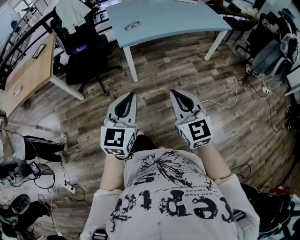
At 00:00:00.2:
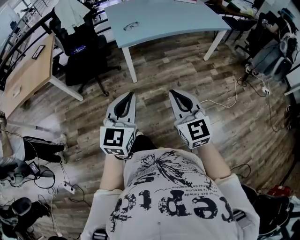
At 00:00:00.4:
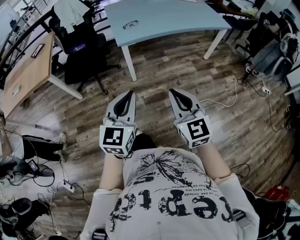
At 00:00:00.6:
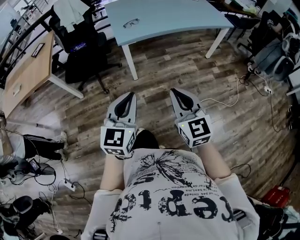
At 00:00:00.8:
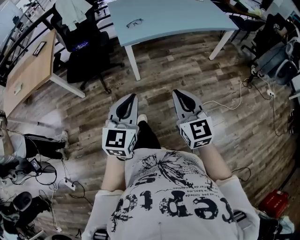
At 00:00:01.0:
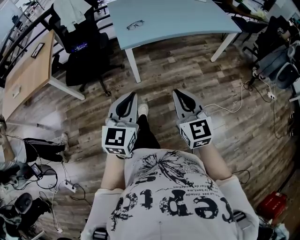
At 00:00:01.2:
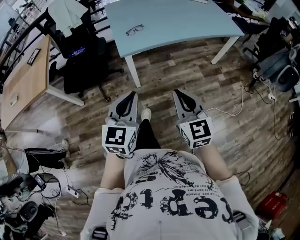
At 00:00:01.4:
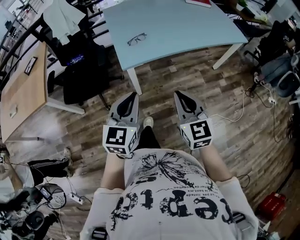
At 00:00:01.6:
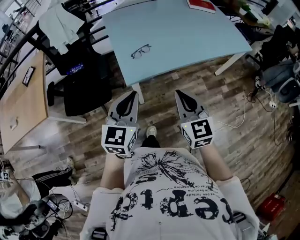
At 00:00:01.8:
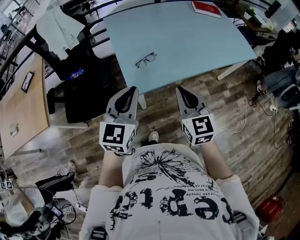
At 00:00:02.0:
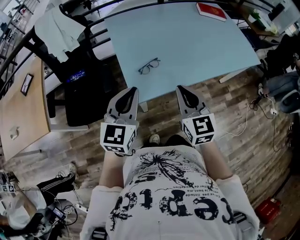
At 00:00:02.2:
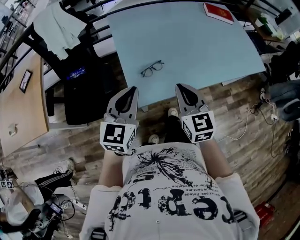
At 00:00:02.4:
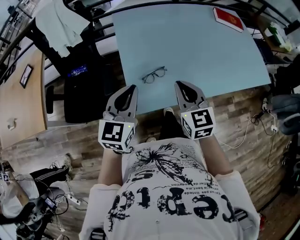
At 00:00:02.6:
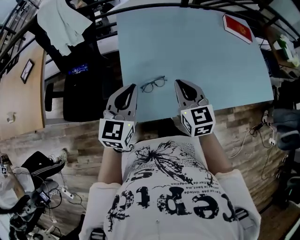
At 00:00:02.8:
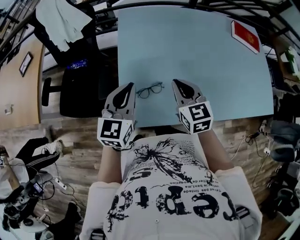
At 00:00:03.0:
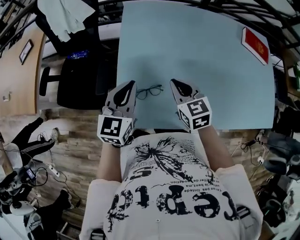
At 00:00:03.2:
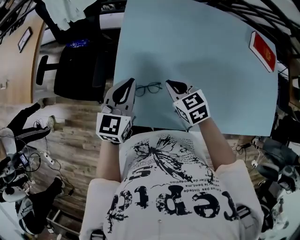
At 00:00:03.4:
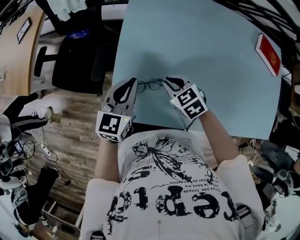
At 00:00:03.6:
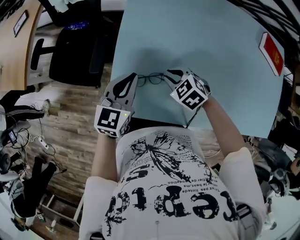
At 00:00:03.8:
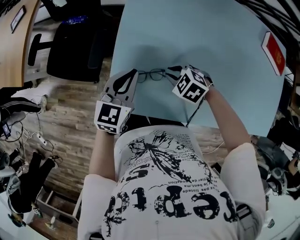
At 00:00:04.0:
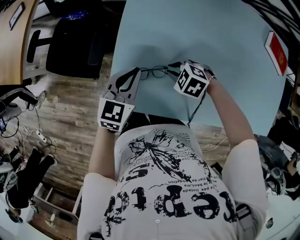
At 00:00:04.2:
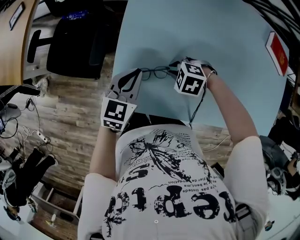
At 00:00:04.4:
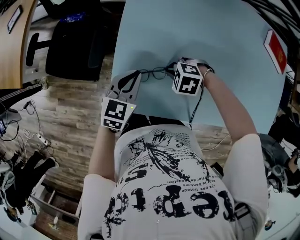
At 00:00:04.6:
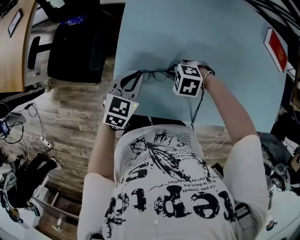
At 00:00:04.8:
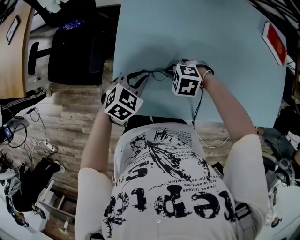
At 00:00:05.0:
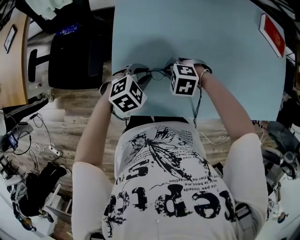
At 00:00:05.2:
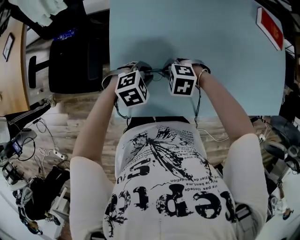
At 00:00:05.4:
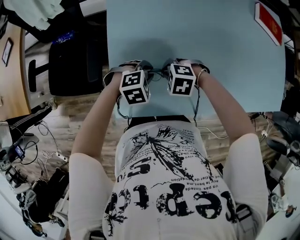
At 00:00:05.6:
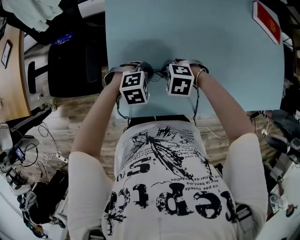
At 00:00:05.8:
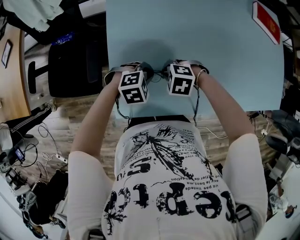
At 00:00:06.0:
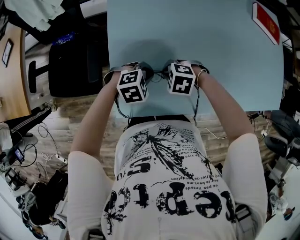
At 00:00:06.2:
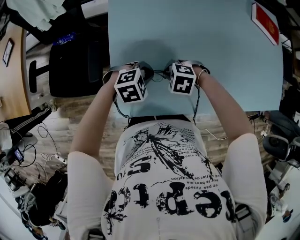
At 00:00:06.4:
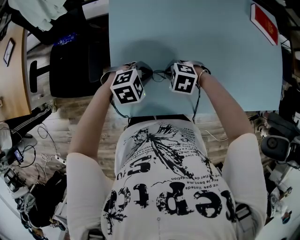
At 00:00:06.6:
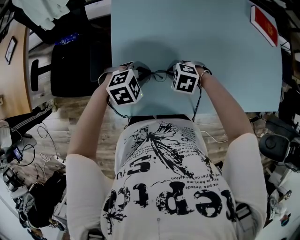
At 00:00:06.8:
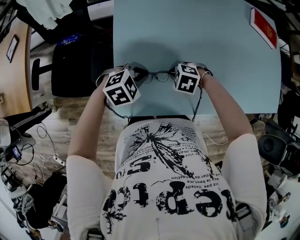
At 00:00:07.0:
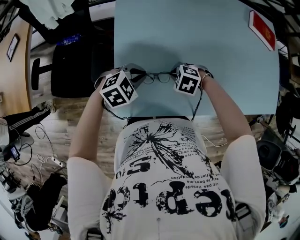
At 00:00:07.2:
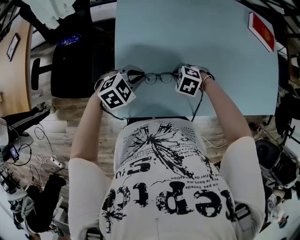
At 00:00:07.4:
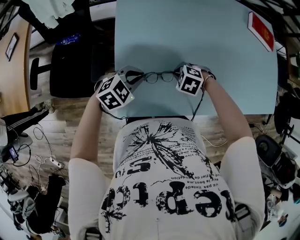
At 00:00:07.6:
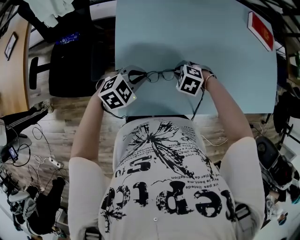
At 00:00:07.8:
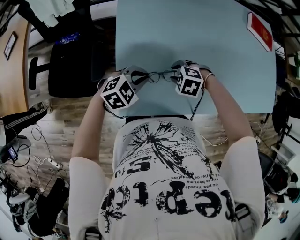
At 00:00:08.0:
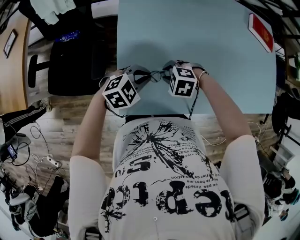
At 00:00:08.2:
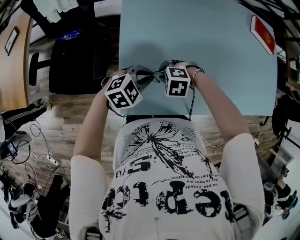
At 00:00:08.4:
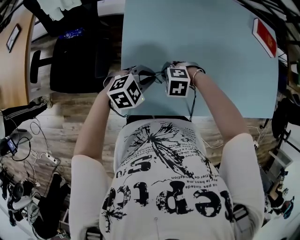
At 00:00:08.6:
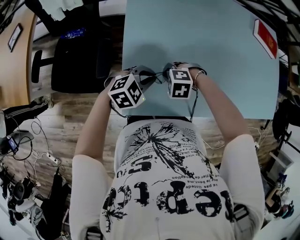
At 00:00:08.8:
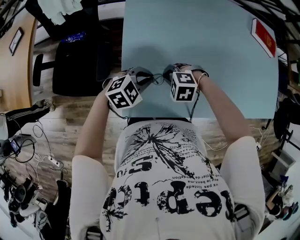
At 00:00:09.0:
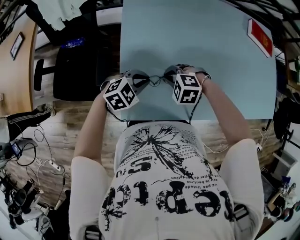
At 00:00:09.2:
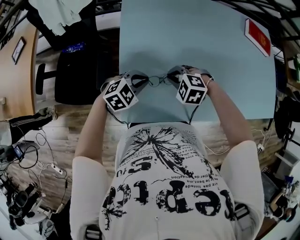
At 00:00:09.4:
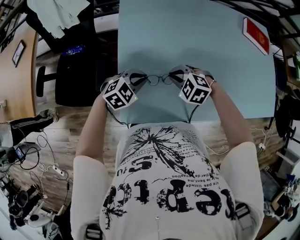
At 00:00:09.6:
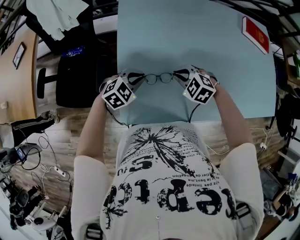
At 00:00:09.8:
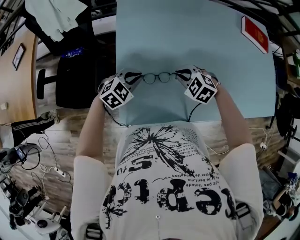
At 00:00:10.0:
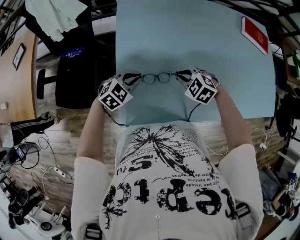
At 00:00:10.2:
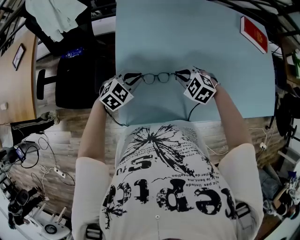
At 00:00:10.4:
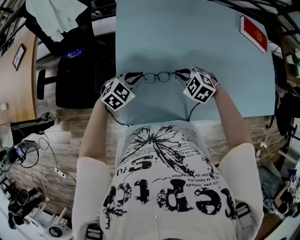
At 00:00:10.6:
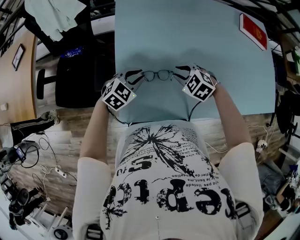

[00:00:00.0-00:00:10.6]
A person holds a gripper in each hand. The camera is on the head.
00:00:00.0 to 00:00:01.6: Both grippers are carried forward, about 40 cm.
00:00:01.6 to 00:00:03.0: The pair of grippers is taken some 40 cm. The right gripper rotates about 30 degrees. The left gripper swivels some 20 degrees.
00:00:03.0 to 00:00:04.6: The two grippers go about 15 cm downward. The left gripper rotates some 20 degrees. Meanwhile the right gripper tips its fingers downward by some 40 degrees.
00:00:04.6 to 00:00:06.0: The left gripper ends up roughly 10 cm from where it was, and changes its angle by some 60 degrees.
00:00:06.0 to 00:00:07.6: The left gripper heads upward, covering some 5 cm.
00:00:07.6 to 00:00:09.0: The right gripper moves some 10 cm, and opens and closes again.
00:00:09.0 to 00:00:10.6: The right gripper changes place by approximately 10 cm, swivels some 30 degrees, and opens its fingers.

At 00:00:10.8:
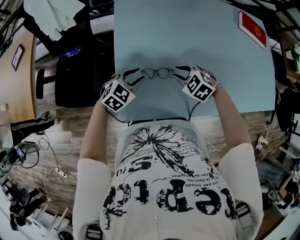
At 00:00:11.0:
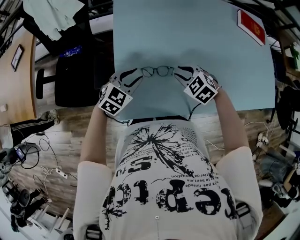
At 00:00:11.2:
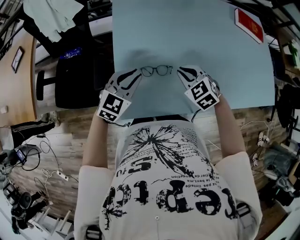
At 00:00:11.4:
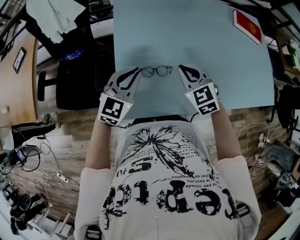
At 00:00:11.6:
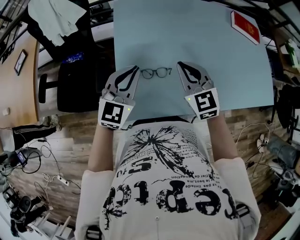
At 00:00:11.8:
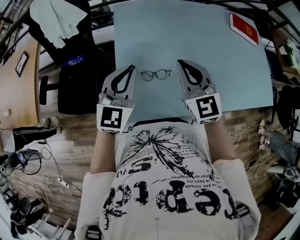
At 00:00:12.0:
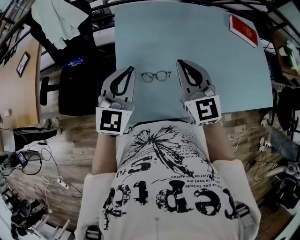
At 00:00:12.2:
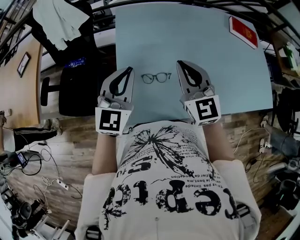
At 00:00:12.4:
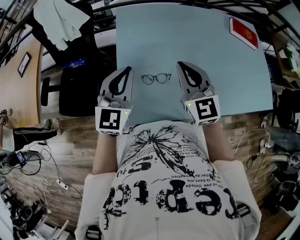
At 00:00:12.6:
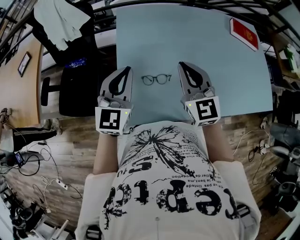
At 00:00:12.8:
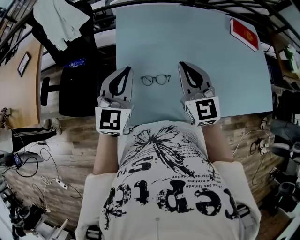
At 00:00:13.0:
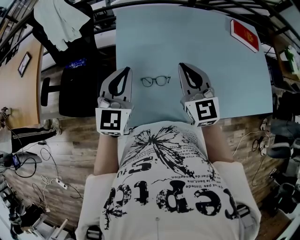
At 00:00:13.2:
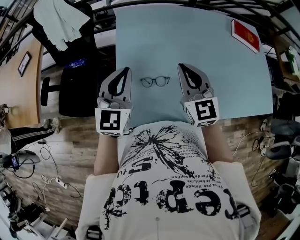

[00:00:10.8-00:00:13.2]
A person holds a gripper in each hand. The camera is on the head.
00:00:10.8 to 00:00:12.0: The grippers both shift upward by roughly 20 cm. The left gripper tilts its fingers roughly 40 degrees upward, and closes, while the right gripper tilts its fingers about 50 degrees upward, and closes up.
00:00:12.0 to 00:00:13.2: The grippers make only small movements.

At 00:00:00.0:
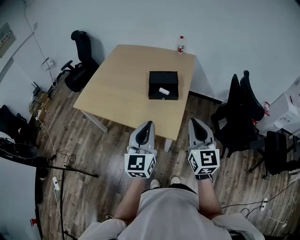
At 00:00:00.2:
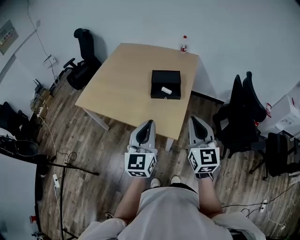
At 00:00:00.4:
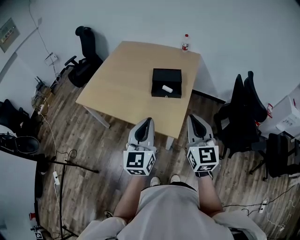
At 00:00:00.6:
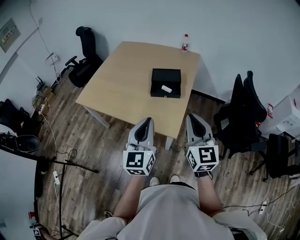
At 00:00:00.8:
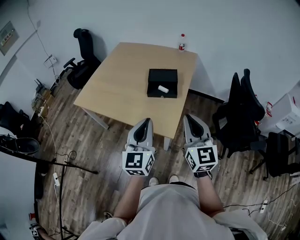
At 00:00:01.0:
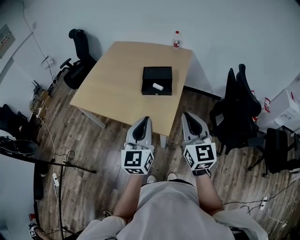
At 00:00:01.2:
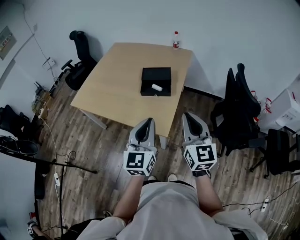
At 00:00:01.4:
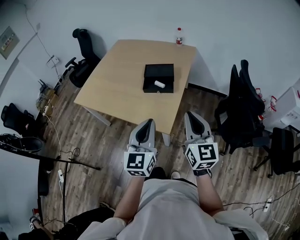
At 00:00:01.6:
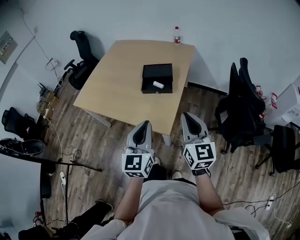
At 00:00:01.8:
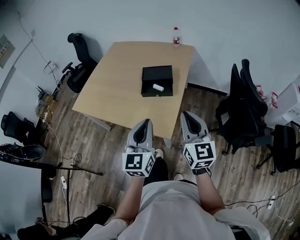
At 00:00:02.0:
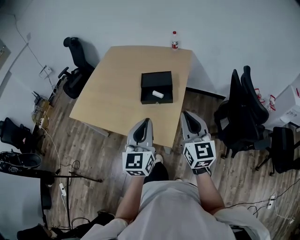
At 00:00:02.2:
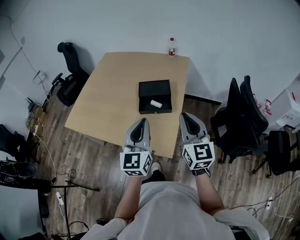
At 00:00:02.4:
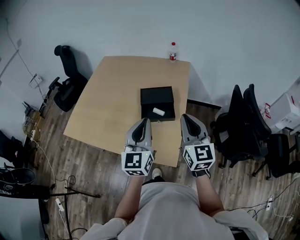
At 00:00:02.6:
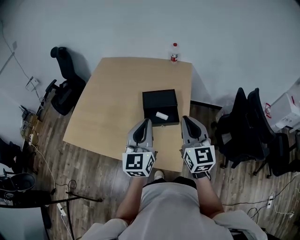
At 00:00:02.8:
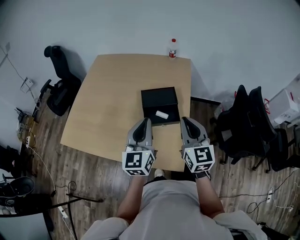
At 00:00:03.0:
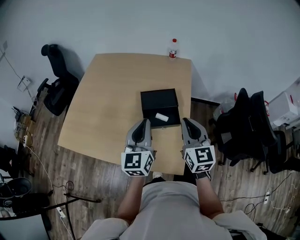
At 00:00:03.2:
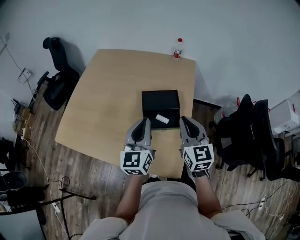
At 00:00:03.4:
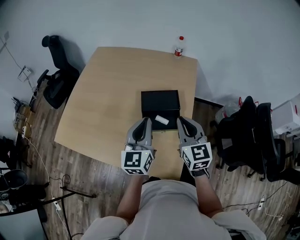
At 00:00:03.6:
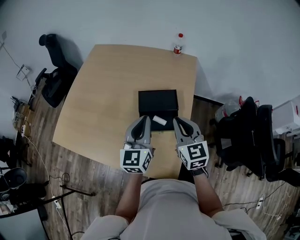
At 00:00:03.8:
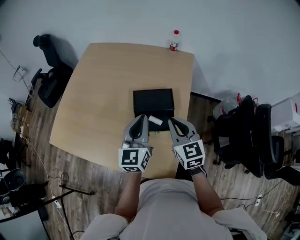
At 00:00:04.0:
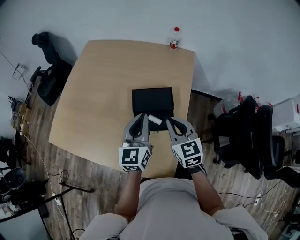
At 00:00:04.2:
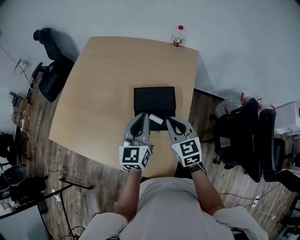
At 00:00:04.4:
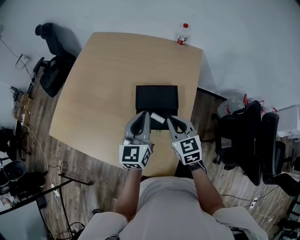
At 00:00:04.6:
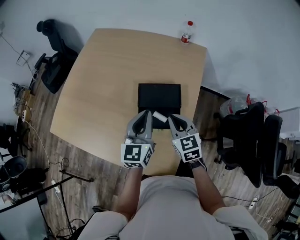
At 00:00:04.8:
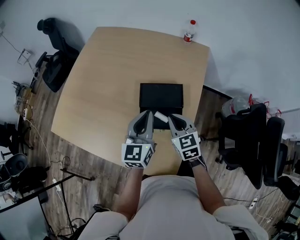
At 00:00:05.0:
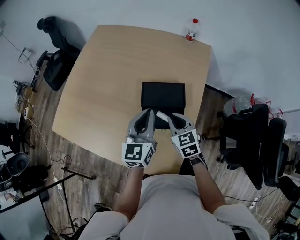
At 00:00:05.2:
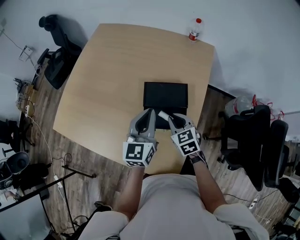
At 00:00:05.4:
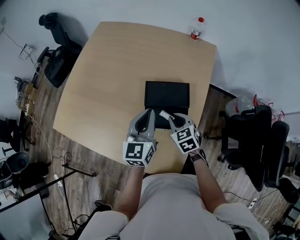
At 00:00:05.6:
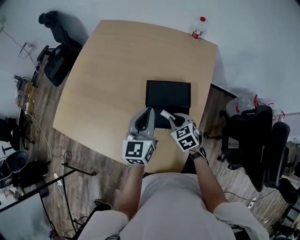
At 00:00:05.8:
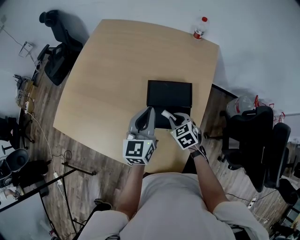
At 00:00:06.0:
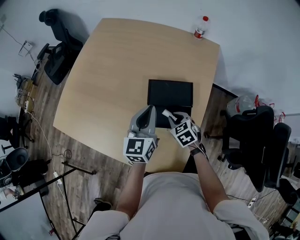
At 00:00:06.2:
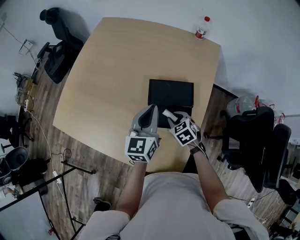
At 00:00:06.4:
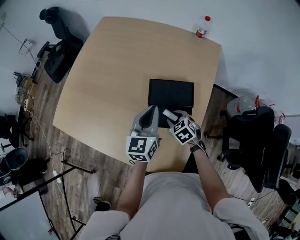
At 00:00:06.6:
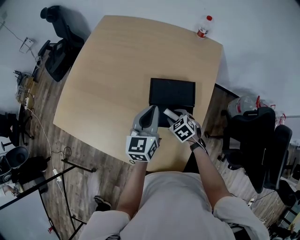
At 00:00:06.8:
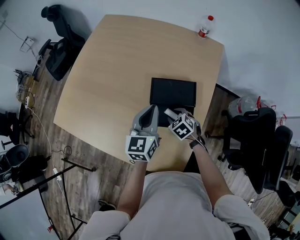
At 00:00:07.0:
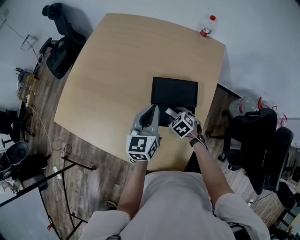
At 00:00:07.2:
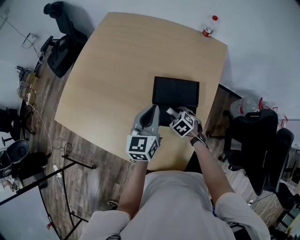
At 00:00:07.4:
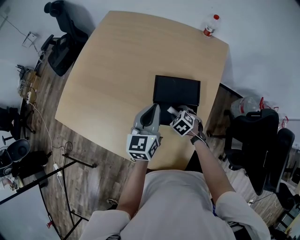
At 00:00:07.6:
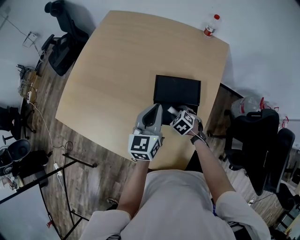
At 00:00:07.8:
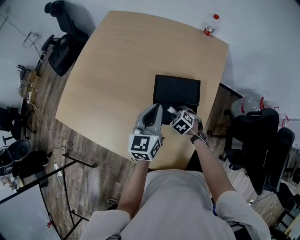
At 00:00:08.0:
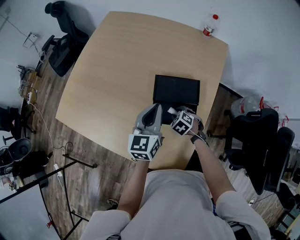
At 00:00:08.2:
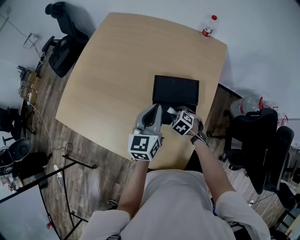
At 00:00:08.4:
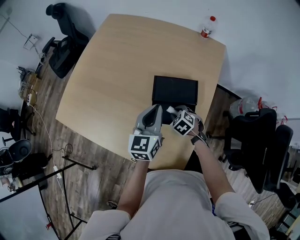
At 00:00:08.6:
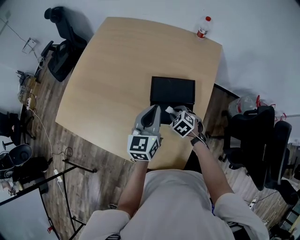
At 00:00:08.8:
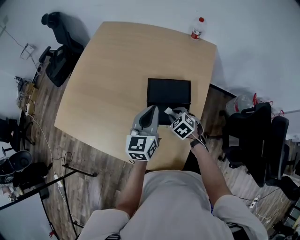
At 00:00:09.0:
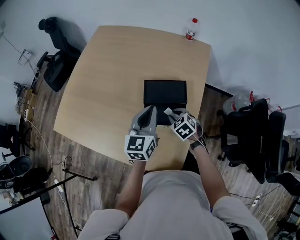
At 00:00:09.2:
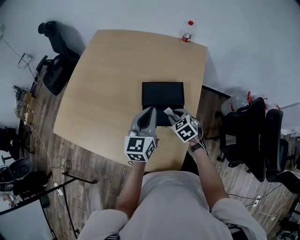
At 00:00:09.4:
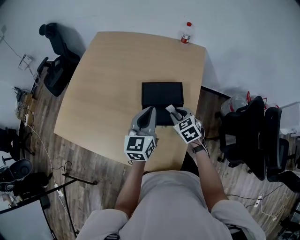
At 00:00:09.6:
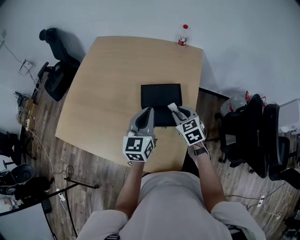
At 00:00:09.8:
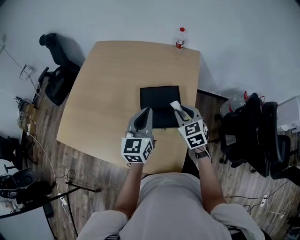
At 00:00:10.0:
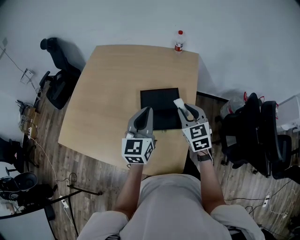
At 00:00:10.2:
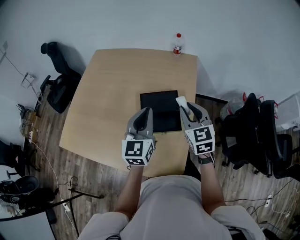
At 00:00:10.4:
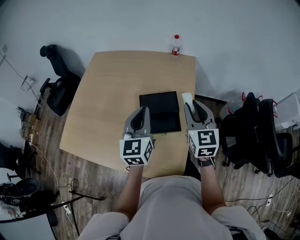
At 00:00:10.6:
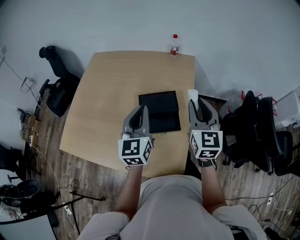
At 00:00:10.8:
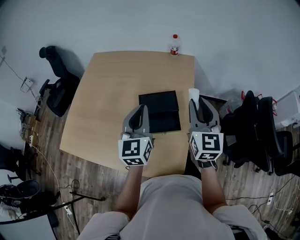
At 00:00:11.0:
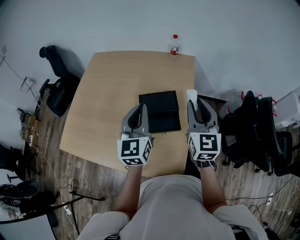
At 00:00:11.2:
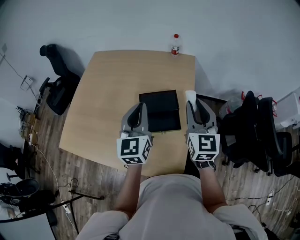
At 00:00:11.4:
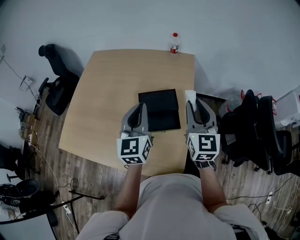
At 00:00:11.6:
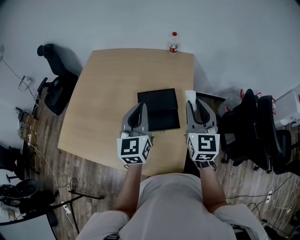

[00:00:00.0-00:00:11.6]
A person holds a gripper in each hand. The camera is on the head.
00:00:00.0 to 00:00:01.4: Both grippers travel together to the right, approximately 10 cm.
00:00:01.4 to 00:00:02.8: The right gripper moves forward and to the left, about 25 cm. The left gripper heads forward, covering about 30 cm.
00:00:02.8 to 00:00:04.4: Both grippers move forward and downward, some 20 cm. The right gripper rotates approximately 30 degrees.
00:00:04.4 to 00:00:05.8: The right gripper heads downward, covering approximately 15 cm, and changes its angle by approximately 30 degrees. Meanwhile the left gripper moves approximately 5 cm.
00:00:05.8 to 00:00:07.2: The right gripper travels downward by some 10 cm, and opens up.
00:00:07.2 to 00:00:08.8: The right gripper is displaced upward by approximately 5 cm.
00:00:08.8 to 00:00:10.2: The left gripper is displaced upward by approximately 10 cm, while the right gripper heads upward, covering approximately 25 cm, and tilts its fingers approximately 40 degrees upward.
00:00:10.2 to 00:00:11.6: The right gripper is displaced upward by roughly 5 cm.
